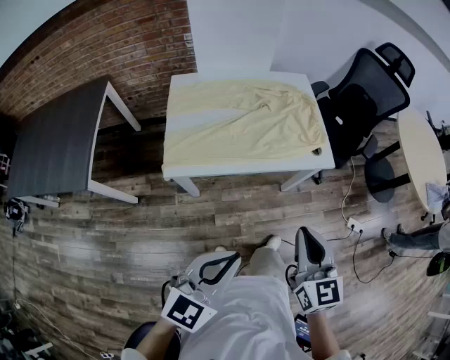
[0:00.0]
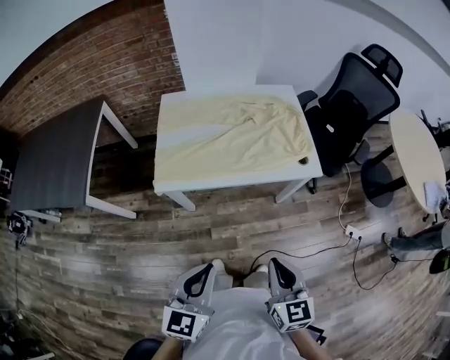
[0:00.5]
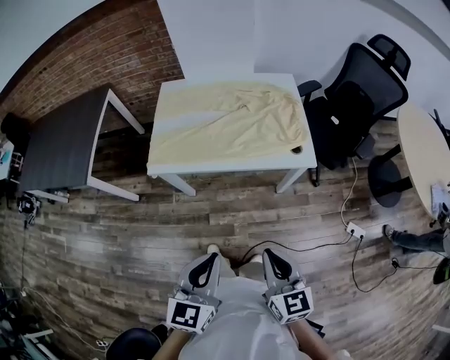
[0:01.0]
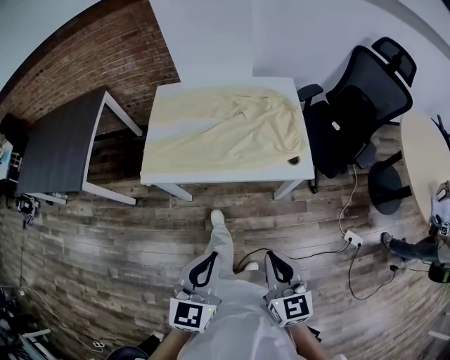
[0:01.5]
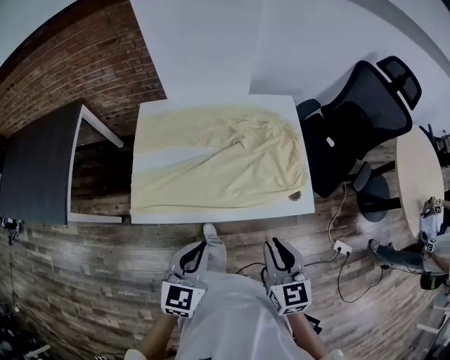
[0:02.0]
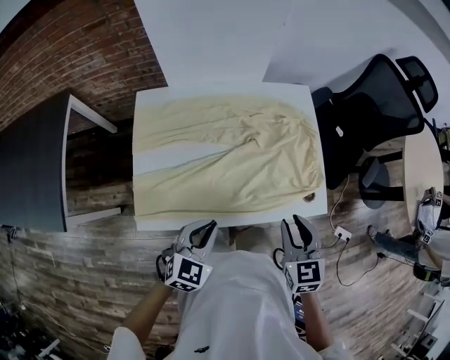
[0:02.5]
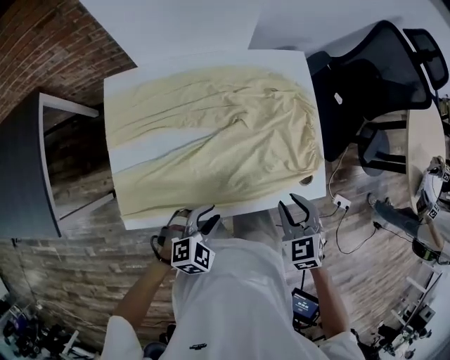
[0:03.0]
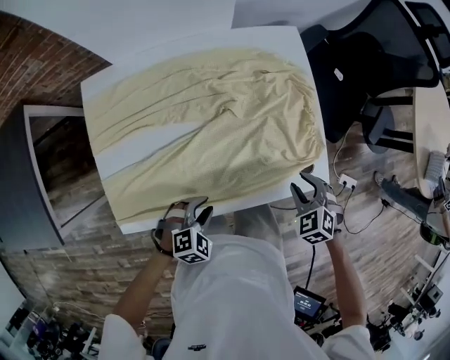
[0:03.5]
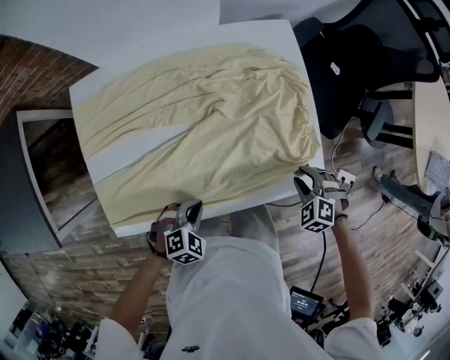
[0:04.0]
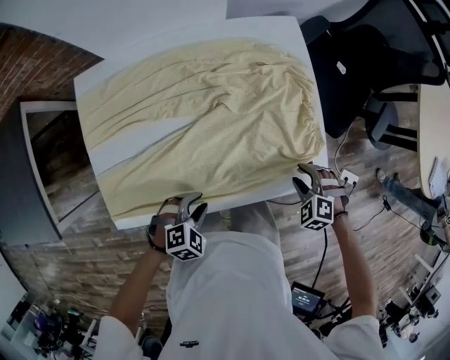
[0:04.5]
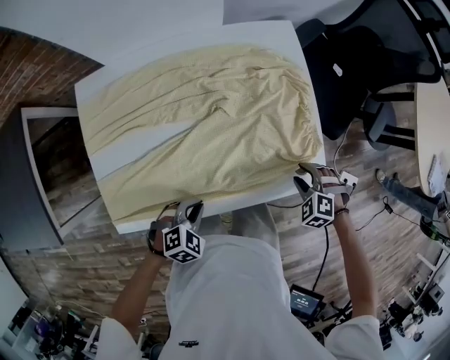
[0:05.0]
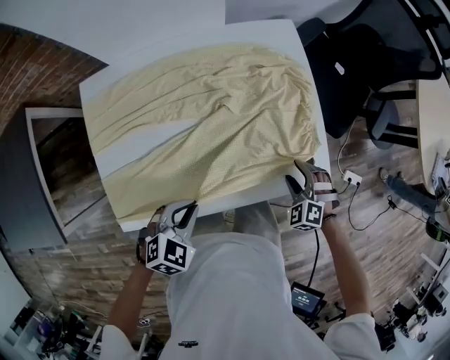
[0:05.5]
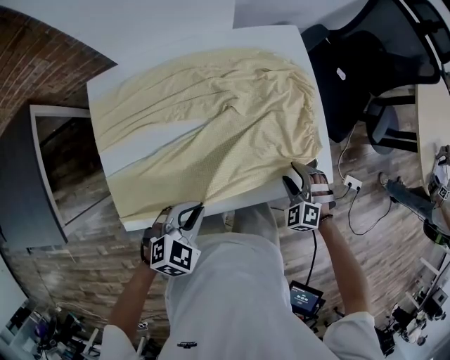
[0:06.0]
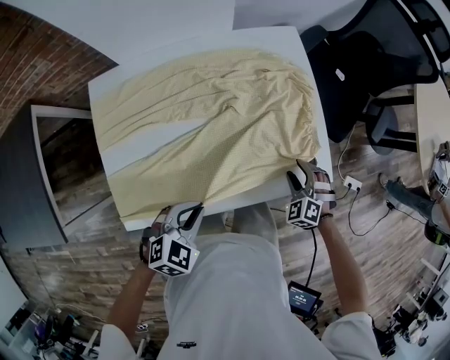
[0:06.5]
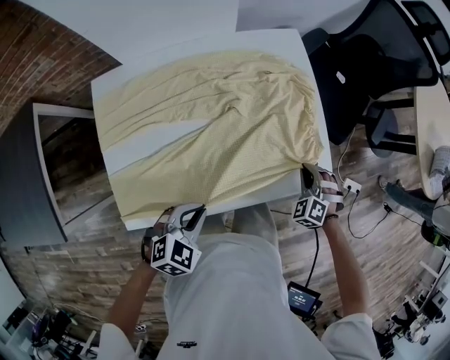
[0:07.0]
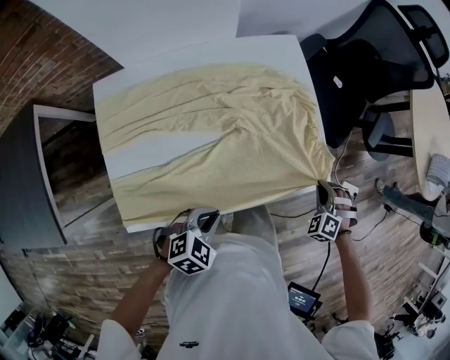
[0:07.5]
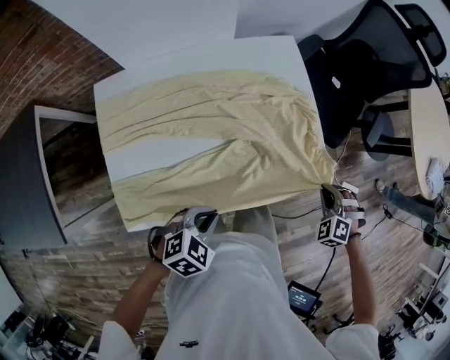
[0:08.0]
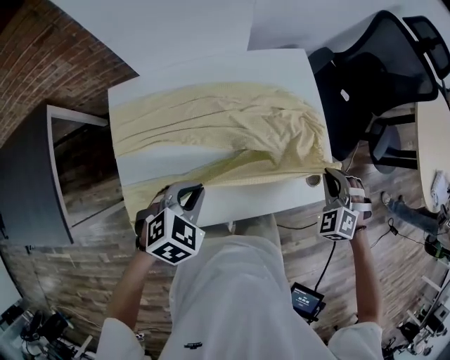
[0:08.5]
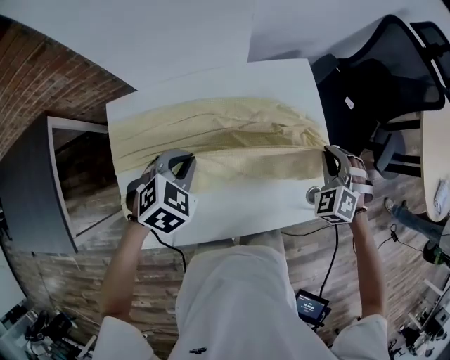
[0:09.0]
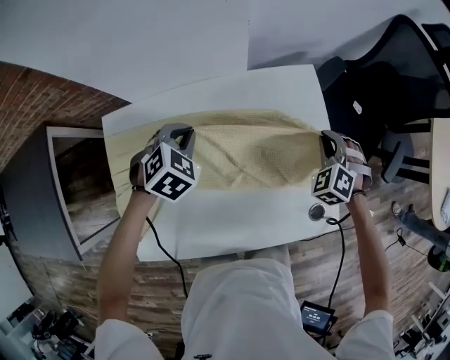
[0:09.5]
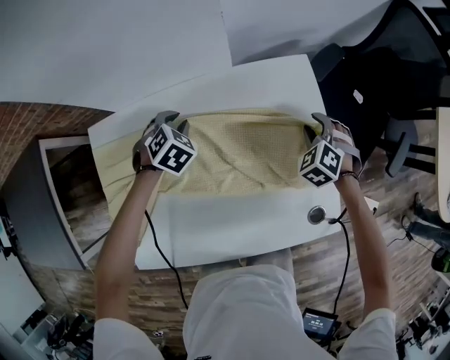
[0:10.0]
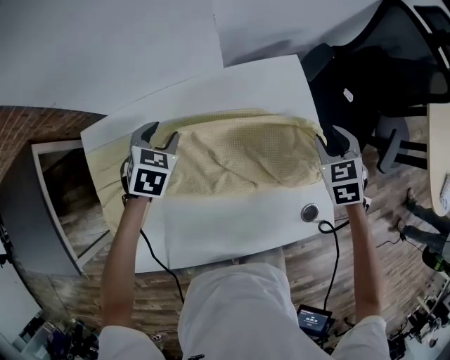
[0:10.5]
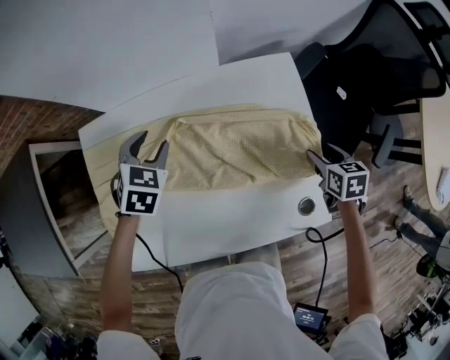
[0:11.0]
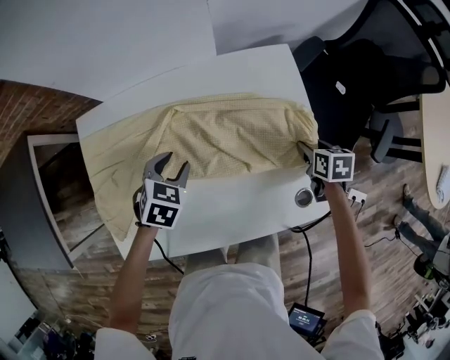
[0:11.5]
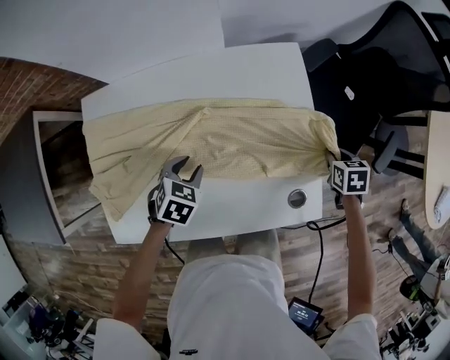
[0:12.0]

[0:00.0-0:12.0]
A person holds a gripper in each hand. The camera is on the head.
0:00.0 to 0:02.0: Both grippers move forward, approximately 20 cm. The left gripper swivels approximately 30 degrees.
0:02.0 to 0:04.0: Both grippers move downward and forward, some 30 cm. The right gripper tilts its fingers about 50 degrees downward; the left gripper tips its fingers downward by roughly 40 degrees, and opens and closes again.
0:04.0 to 0:06.0: The right gripper goes about 5 cm to the left, and opens; the left gripper is displaced upward by approximately 10 cm, and opens and closes again.
0:06.0 to 0:08.0: The right gripper is displaced to the right and upward by about 15 cm, and closes.
0:08.0 to 0:10.0: The right gripper changes place by approximately 35 cm, and opens. Meanwhile the left gripper moves approximately 50 cm, and swivels some 30 degrees.
0:10.0 to 0:12.0: The left gripper heads backward and to the right, covering approximately 20 cm, and rotates about 20 degrees, while the right gripper shifts some 20 cm to the right and backward, and twists about 50 degrees clockwise, seen from behind.

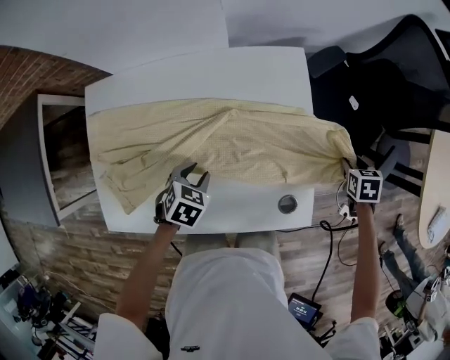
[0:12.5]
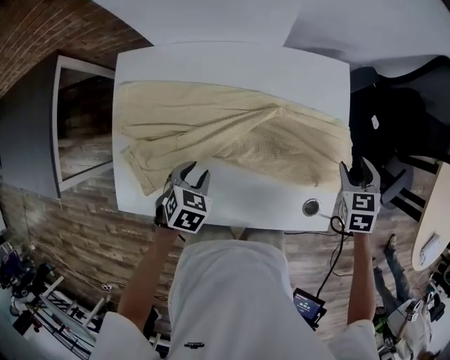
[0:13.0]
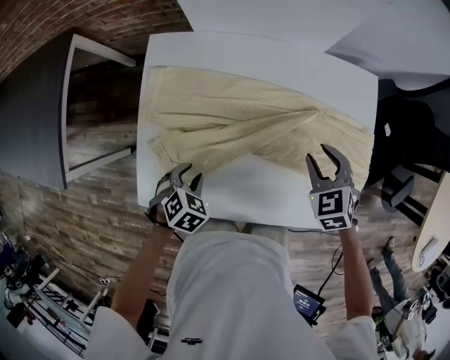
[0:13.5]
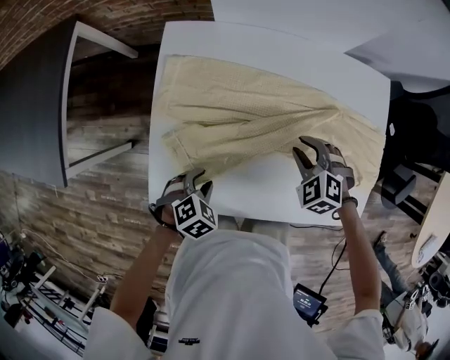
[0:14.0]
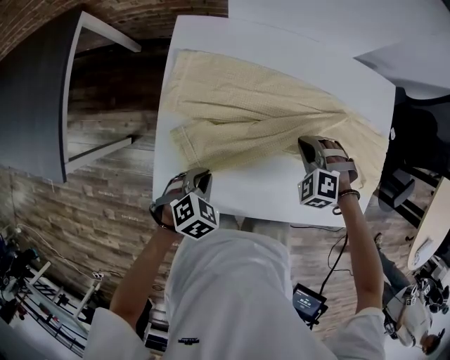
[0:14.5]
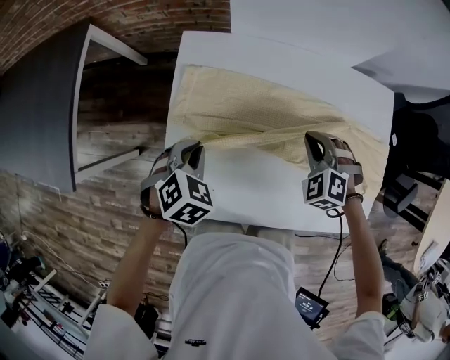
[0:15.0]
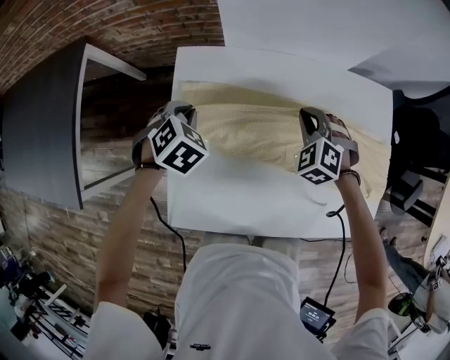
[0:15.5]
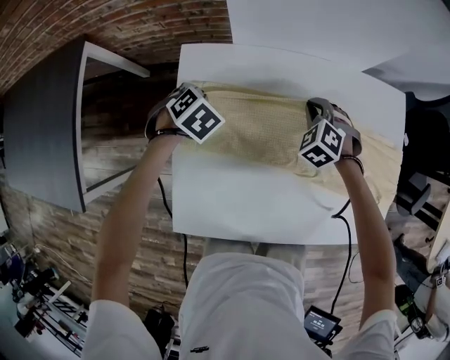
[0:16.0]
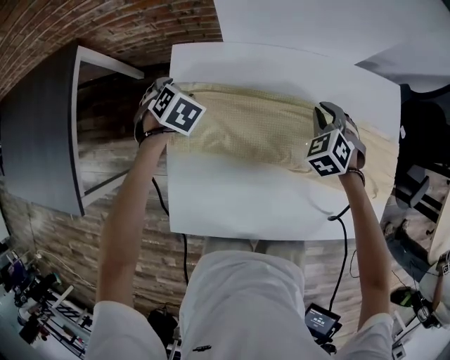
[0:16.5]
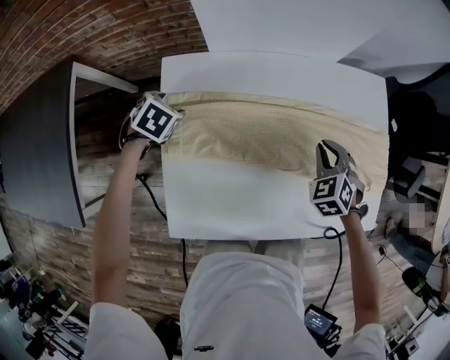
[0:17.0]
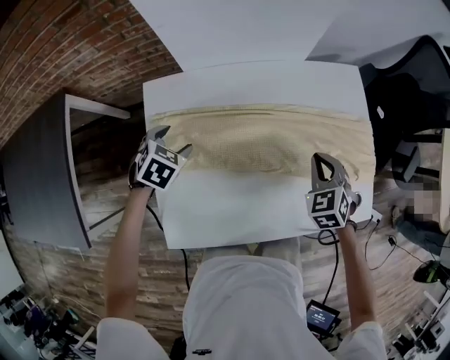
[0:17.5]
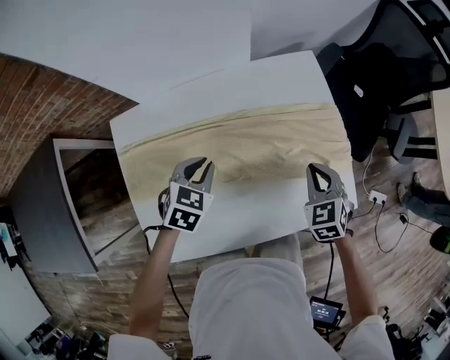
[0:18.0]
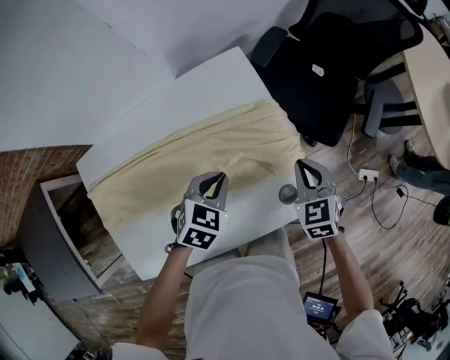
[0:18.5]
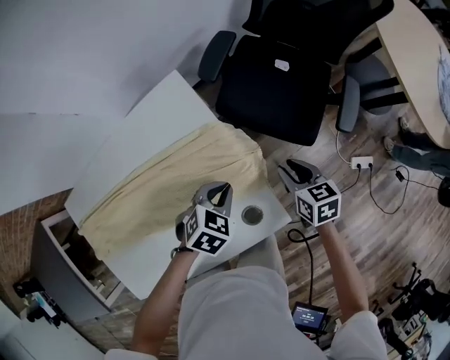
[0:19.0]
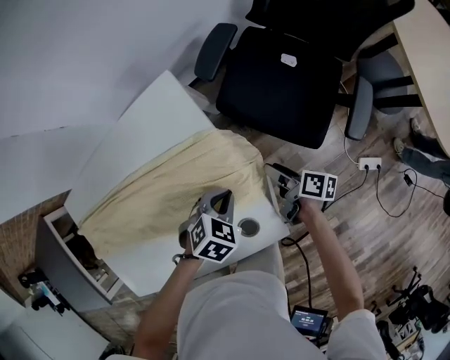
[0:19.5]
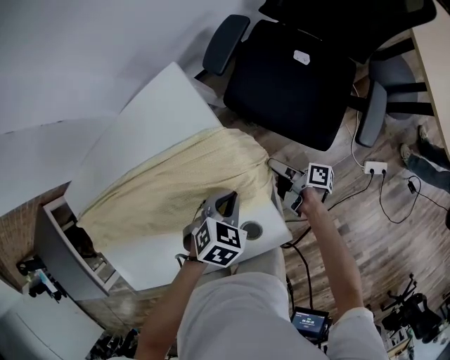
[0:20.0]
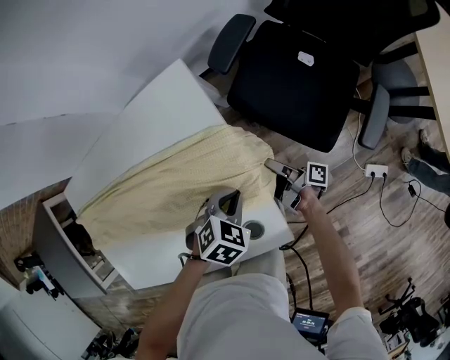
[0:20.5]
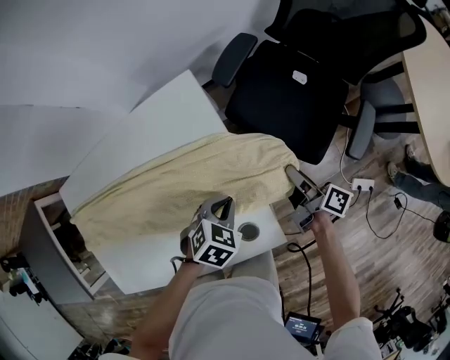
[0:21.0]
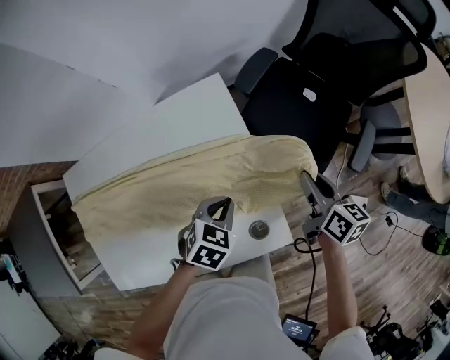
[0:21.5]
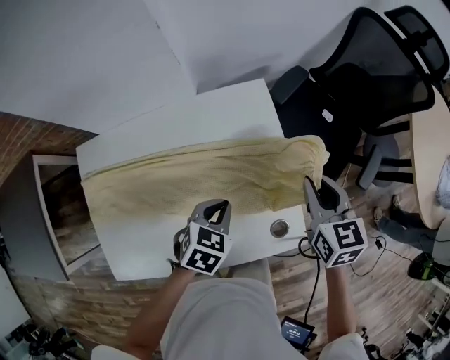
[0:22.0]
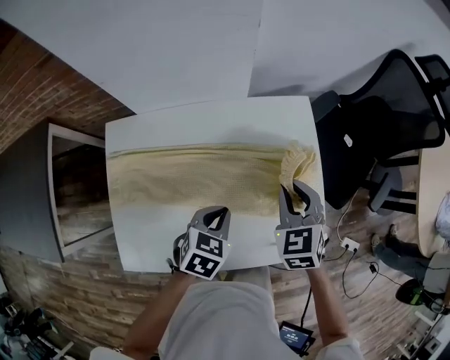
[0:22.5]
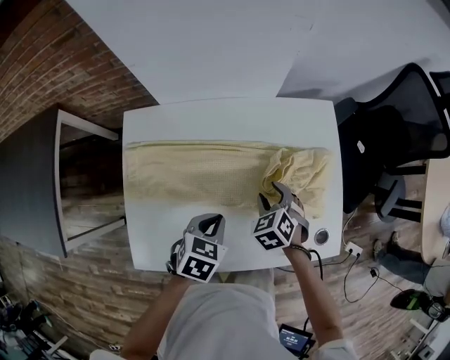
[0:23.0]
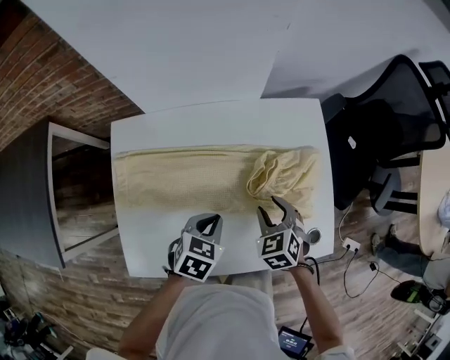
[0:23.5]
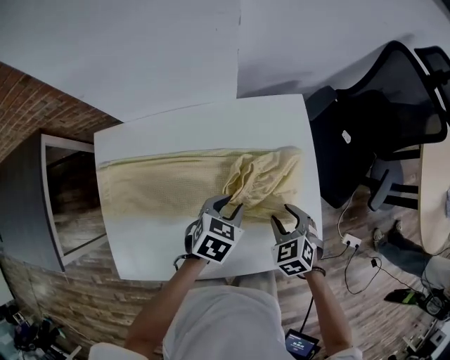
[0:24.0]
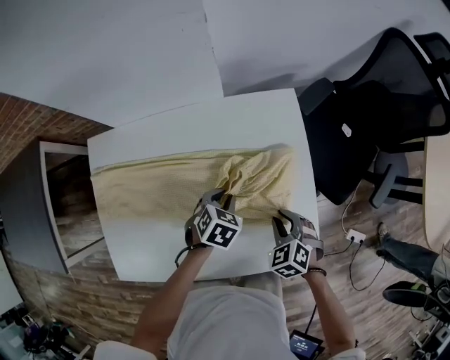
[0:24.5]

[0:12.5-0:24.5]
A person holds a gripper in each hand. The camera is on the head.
0:12.5 to 0:14.5: The left gripper ends up roughly 30 cm from where it was, and closes, while the right gripper travels upward and back again, roughly 10 cm each way, rotates around the line of its fingers by some 90 degrees, counterclockwise from behind, and closes its fingers.
0:14.5 to 0:16.5: The left gripper heads forward, covering about 30 cm, and opens; the right gripper shifts about 15 cm forward, and swivels some 40 degrees.
0:16.5 to 0:18.5: The two grippers travel together, approximately 50 cm. The left gripper swivels roughly 40 degrees, and closes up. The right gripper rotates around the line of its fingers by about 40 degrees, clockwise from behind.
0:18.5 to 0:20.5: The right gripper shifts about 20 cm downward, rotates around the line of its fingers by some 110 degrees, clockwise from behind, and opens its fingers. The left gripper goes approximately 20 cm to the right and downward.
0:20.5 to 0:22.5: The left gripper goes roughly 30 cm to the left and upward, and changes its angle by roughly 30 degrees. The right gripper is displaced upward and to the left by some 40 cm, and rolls counterclockwise, seen from behind, by approximately 120 degrees.
0:22.5 to 0:24.5: The left gripper goes roughly 15 cm downward and forward, and reaches some 10 cm to the left, then returns. The right gripper travels downward and to the right by roughly 20 cm, and changes its angle by roughly 30 degrees.

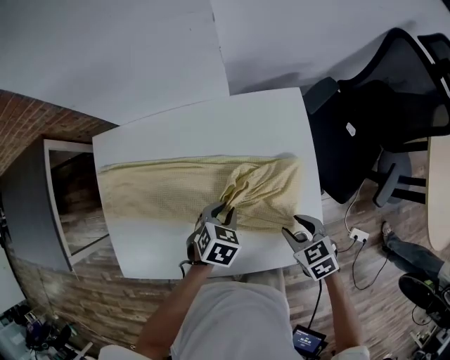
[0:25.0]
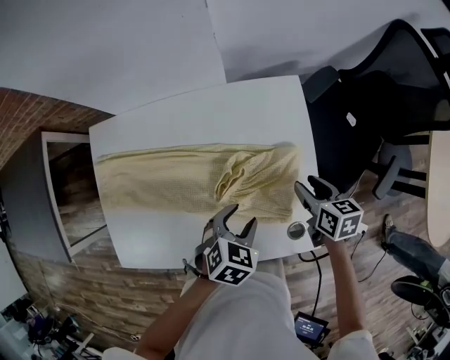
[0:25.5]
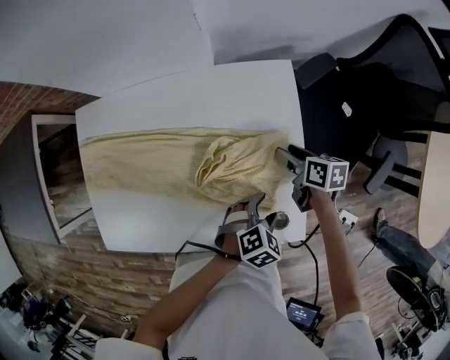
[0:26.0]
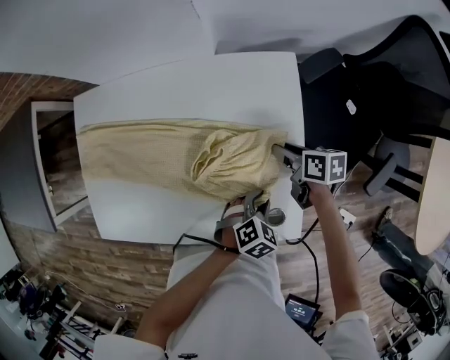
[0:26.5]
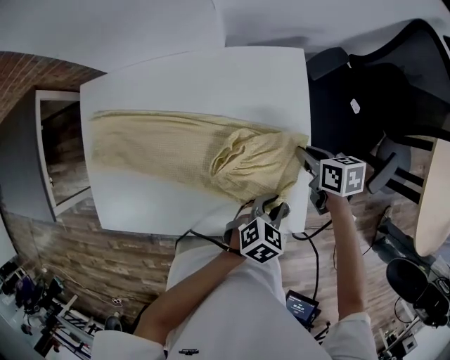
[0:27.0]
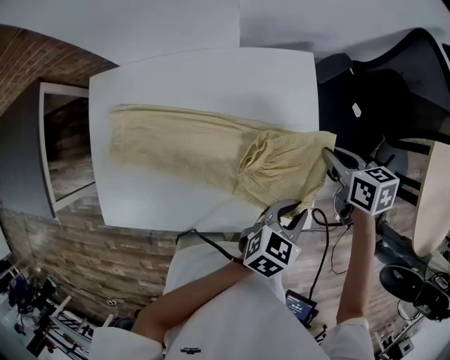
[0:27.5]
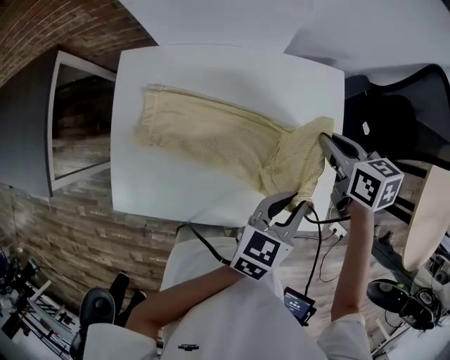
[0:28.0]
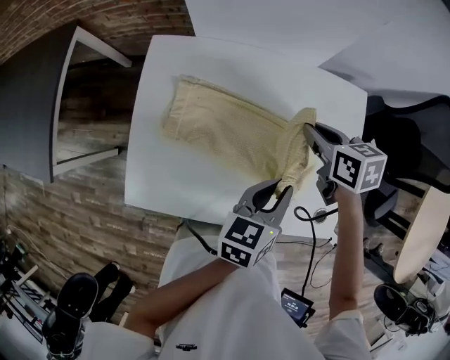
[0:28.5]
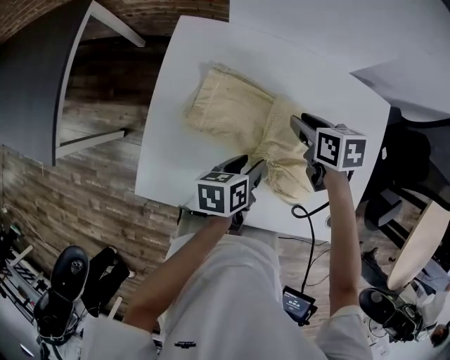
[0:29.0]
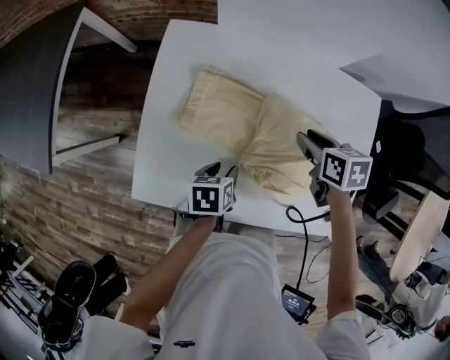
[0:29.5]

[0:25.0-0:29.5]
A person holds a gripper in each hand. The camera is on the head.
0:25.0 to 0:27.0: The left gripper shifts about 20 cm to the right and backward, and opens, then closes once more; the right gripper goes approximately 15 cm forward and to the right, rotates some 30 degrees, and closes its fingers.
0:27.0 to 0:29.5: The two grippers go roughly 35 cm to the left. The left gripper rotates around the line of its fingers by approximately 60 degrees, counterclockwise from behind, and opens. Meanwhile the right gripper opens.
